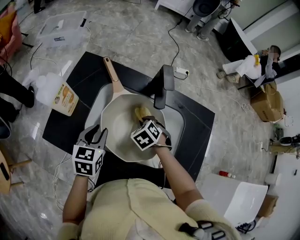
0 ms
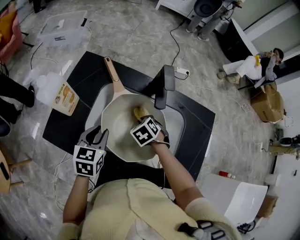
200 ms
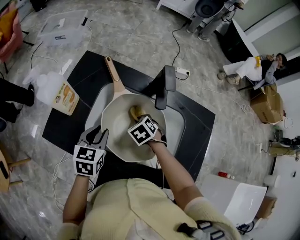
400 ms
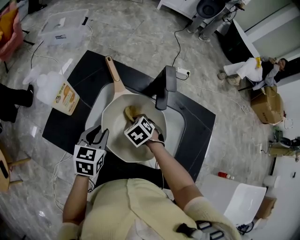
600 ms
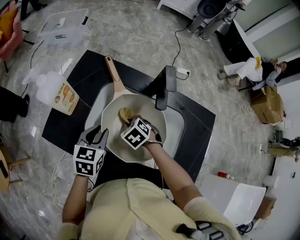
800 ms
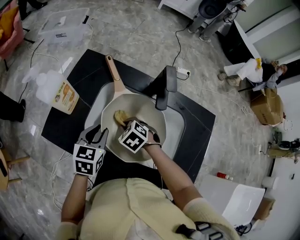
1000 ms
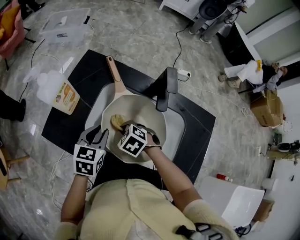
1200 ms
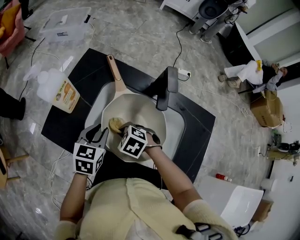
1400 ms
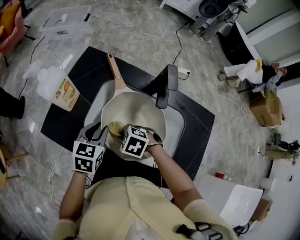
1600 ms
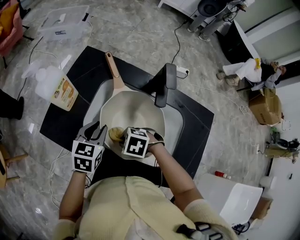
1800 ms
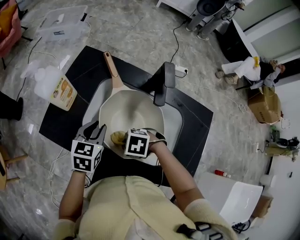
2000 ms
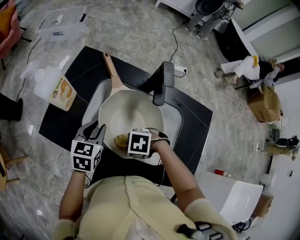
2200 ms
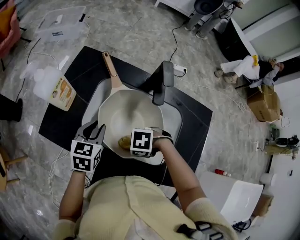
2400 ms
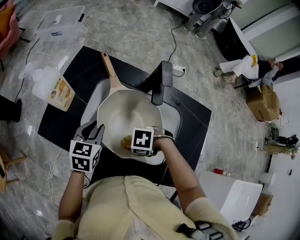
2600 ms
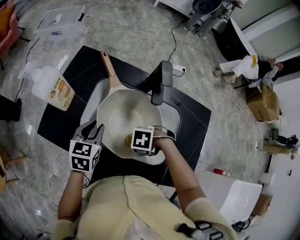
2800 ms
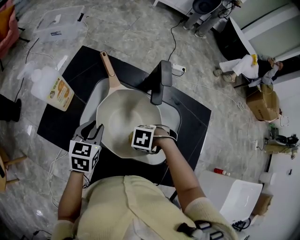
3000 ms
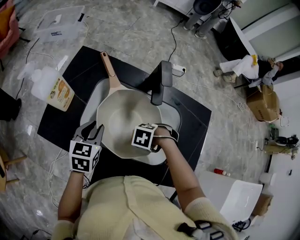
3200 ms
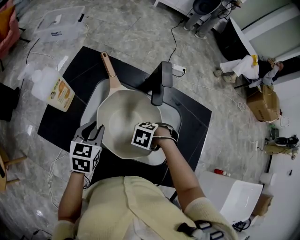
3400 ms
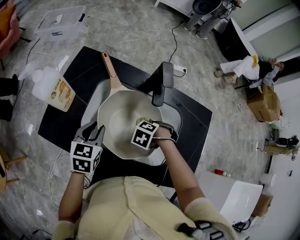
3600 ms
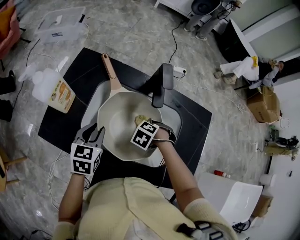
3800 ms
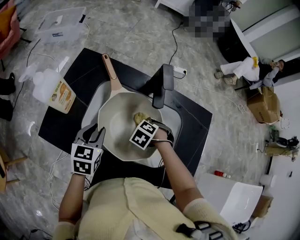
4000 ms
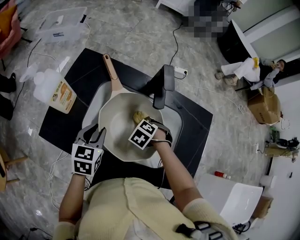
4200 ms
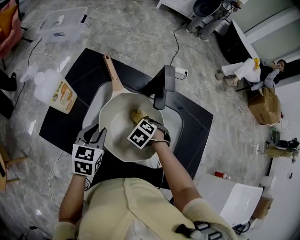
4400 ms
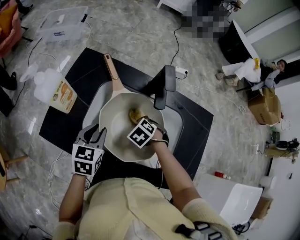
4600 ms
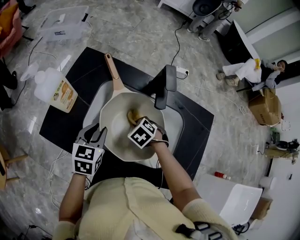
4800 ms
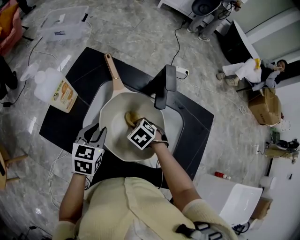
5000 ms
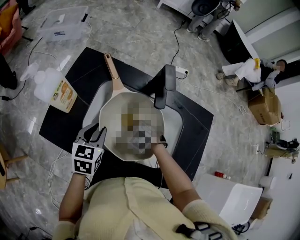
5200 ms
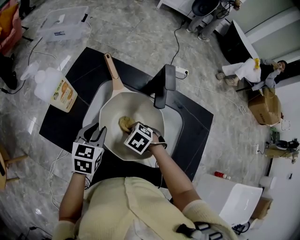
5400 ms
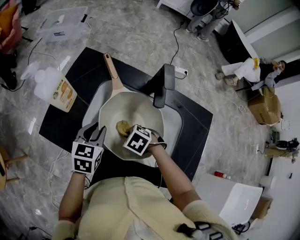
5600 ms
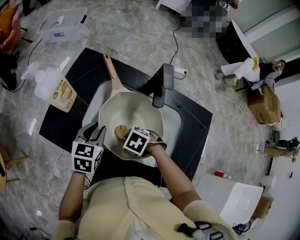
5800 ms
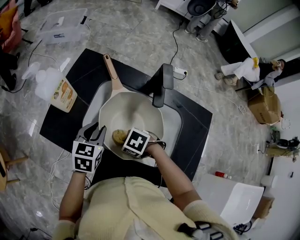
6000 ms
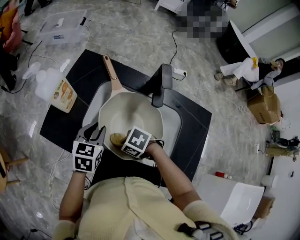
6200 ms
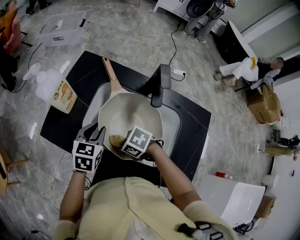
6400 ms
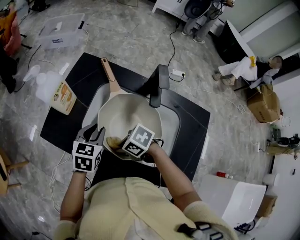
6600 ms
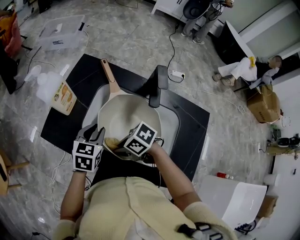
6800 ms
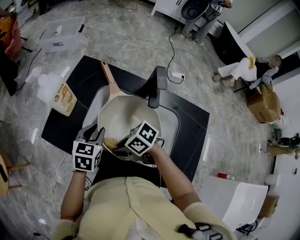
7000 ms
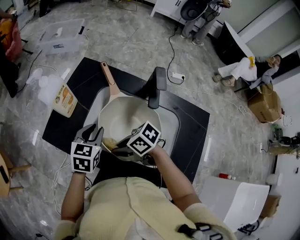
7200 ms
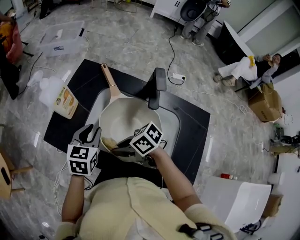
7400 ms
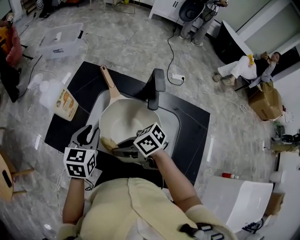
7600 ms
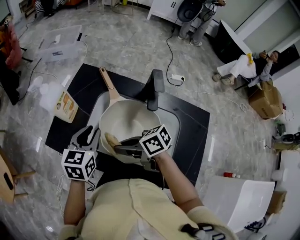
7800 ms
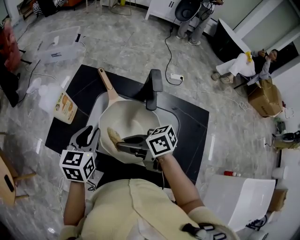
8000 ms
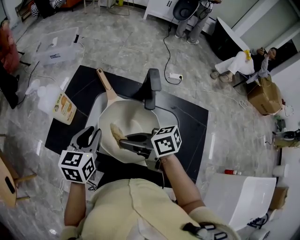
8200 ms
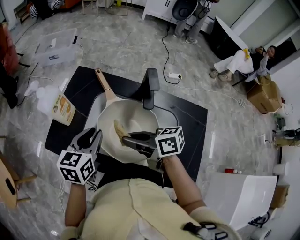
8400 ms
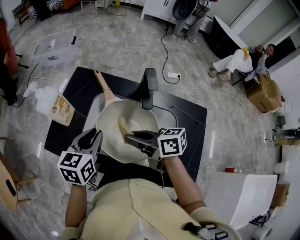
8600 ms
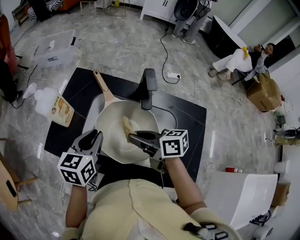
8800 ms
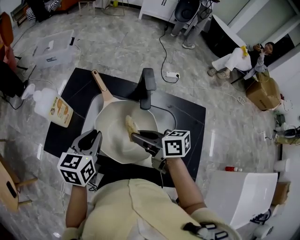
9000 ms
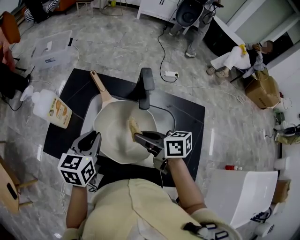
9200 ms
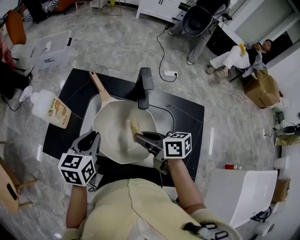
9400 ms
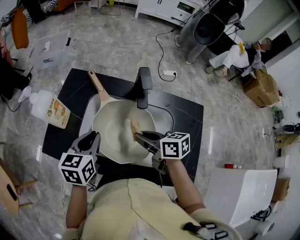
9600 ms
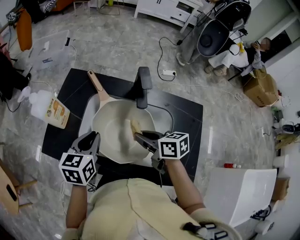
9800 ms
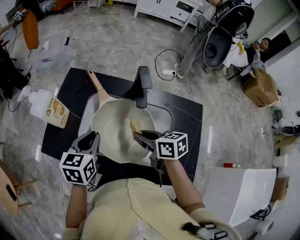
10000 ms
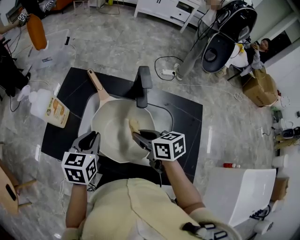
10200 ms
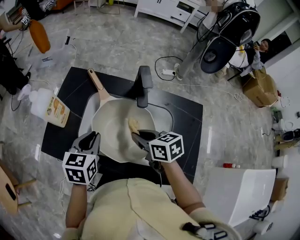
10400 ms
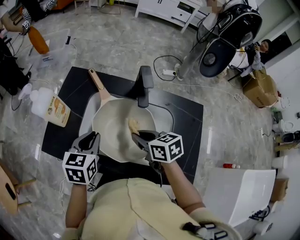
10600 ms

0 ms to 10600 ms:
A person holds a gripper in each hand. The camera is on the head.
0 ms to 1600 ms: The right gripper shifts by about 15 cm, and rotates approximately 40 degrees.
1600 ms to 3000 ms: The right gripper changes place by roughly 15 cm, and changes its angle by some 30 degrees.
3000 ms to 4600 ms: The right gripper shifts by roughly 10 cm, and rotates some 40 degrees.
4600 ms to 6000 ms: The right gripper moves about 15 cm, and rotates approximately 30 degrees.
6000 ms to 7600 ms: The left gripper travels upward by about 5 cm; the right gripper travels upward by roughly 10 cm, and tilts its fingers approximately 40 degrees upward.
7600 ms to 9000 ms: The right gripper travels to the right and upward by about 15 cm, and turns by some 40 degrees, while the left gripper shifts by some 5 cm.
9000 ms to 10600 ms: The right gripper turns by roughly 20 degrees.

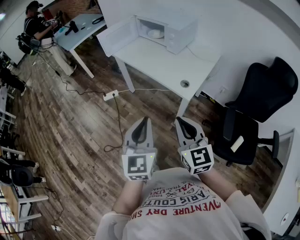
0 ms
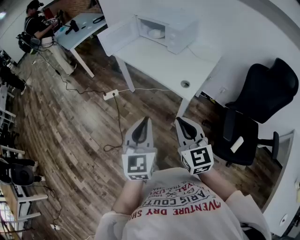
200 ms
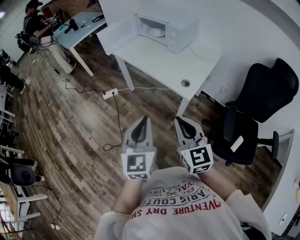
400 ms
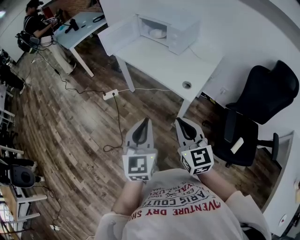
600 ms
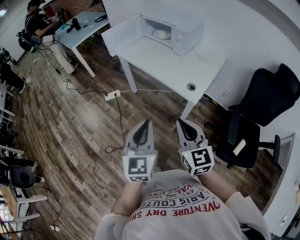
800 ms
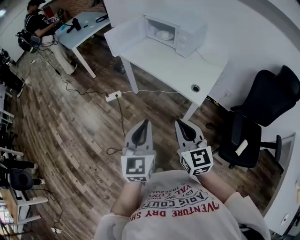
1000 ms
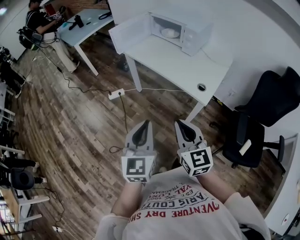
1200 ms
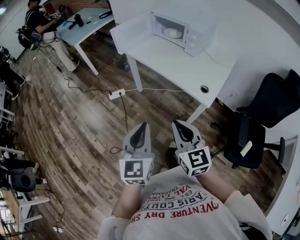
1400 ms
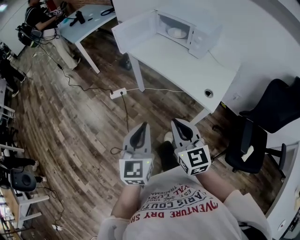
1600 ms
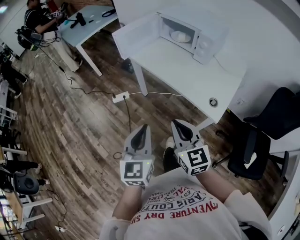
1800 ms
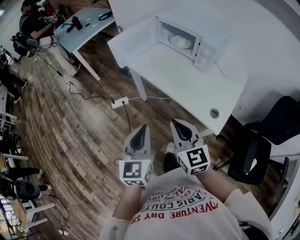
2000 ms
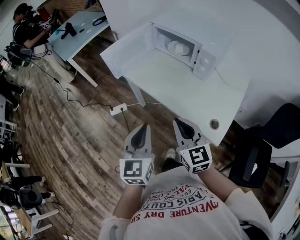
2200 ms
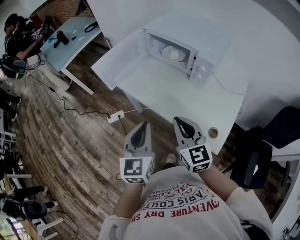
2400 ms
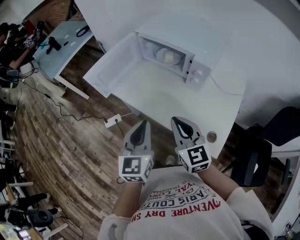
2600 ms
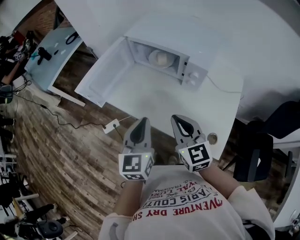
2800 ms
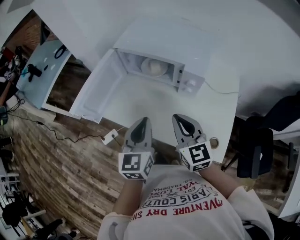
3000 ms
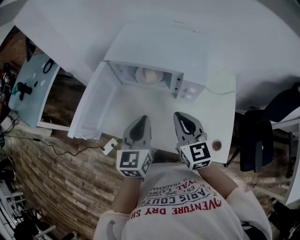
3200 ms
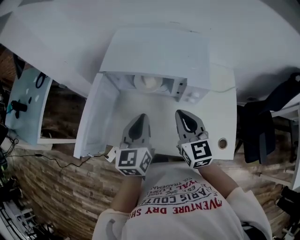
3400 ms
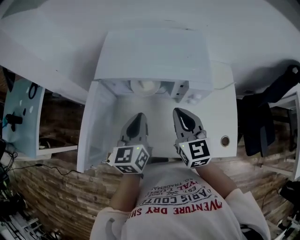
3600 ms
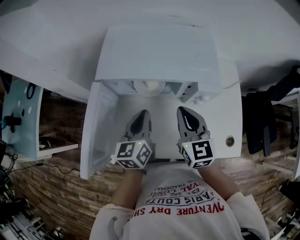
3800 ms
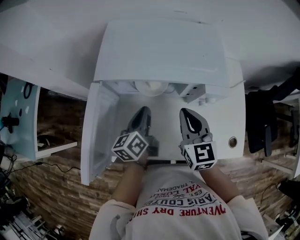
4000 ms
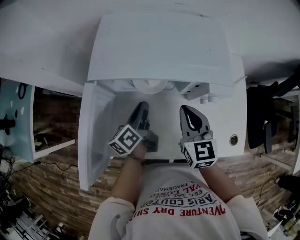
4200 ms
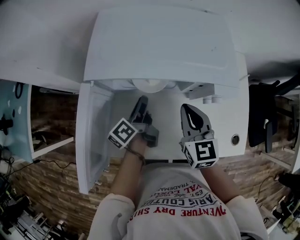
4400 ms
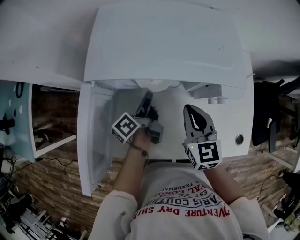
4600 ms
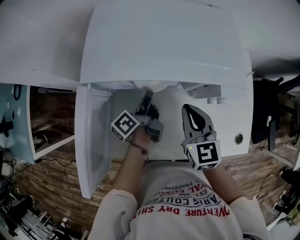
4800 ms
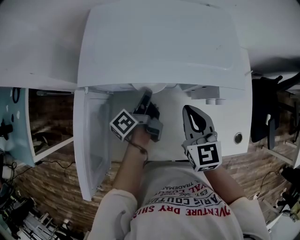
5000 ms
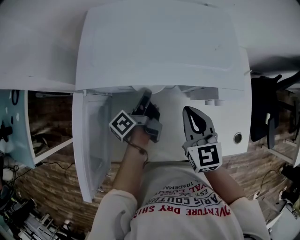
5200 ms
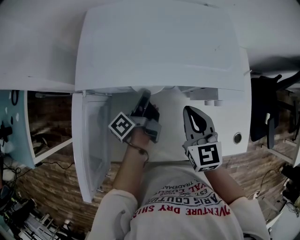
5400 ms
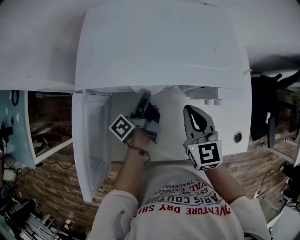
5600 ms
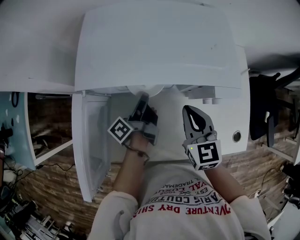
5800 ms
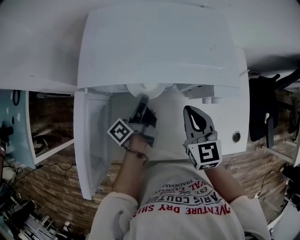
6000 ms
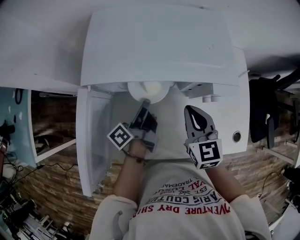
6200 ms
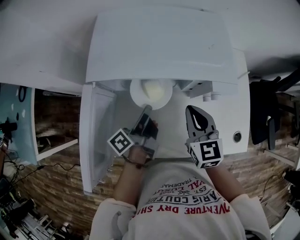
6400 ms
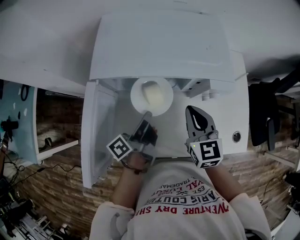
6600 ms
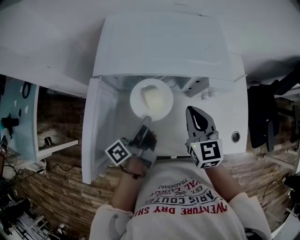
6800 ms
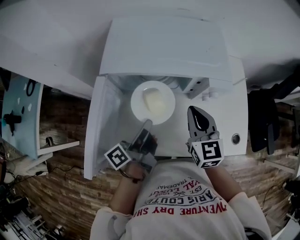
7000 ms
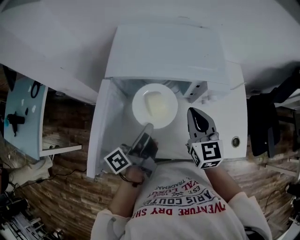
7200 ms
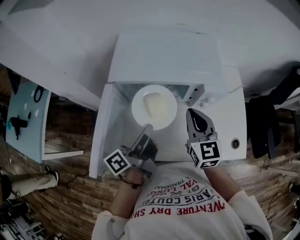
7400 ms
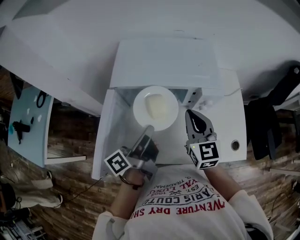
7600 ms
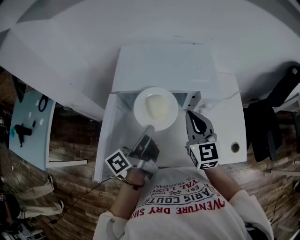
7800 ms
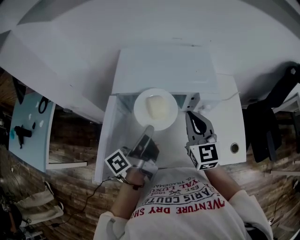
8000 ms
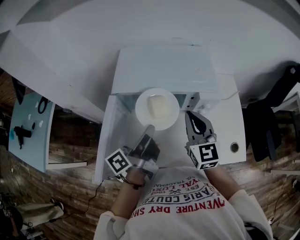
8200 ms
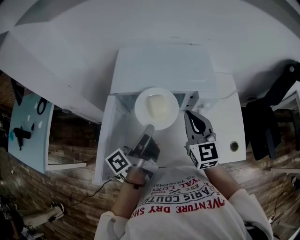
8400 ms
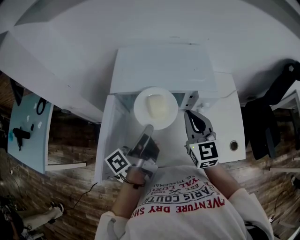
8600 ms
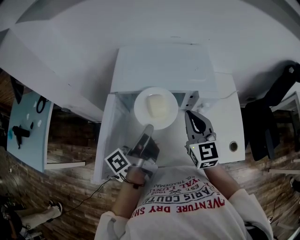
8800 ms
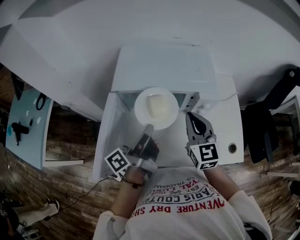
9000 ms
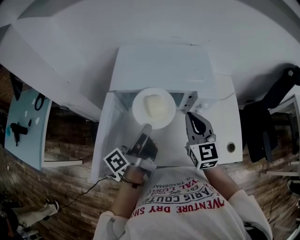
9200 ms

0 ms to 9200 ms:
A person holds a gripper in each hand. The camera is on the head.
0 ms to 1600 ms: Both grippers move to the left and forward, roughly 15 cm.
1600 ms to 3000 ms: The two grippers travel together, forward, some 50 cm. The left gripper turns by roughly 20 degrees.
3000 ms to 4600 ms: The left gripper changes place by some 35 cm, rolls counterclockwise, seen from behind, by some 70 degrees, and opens up; the right gripper changes place by some 20 cm, and swivels about 30 degrees.
4600 ms to 6200 ms: The grippers stay close to where they were, moving slightly.
6200 ms to 7600 ms: The left gripper shifts some 20 cm upward and backward. The right gripper shifts roughly 10 cm upward.
7600 ms to 9200 ms: There are only small adjustments of the grippers.

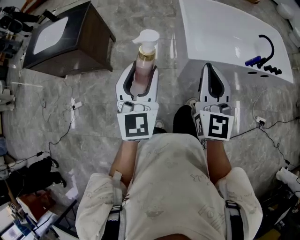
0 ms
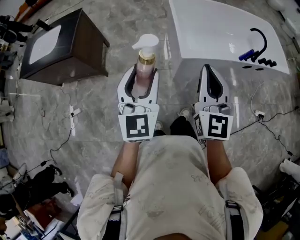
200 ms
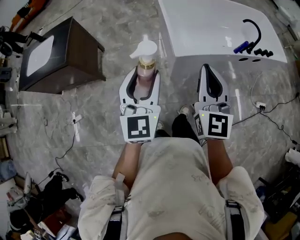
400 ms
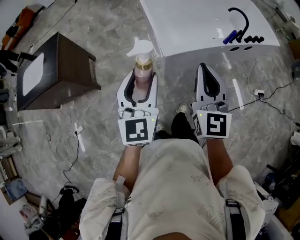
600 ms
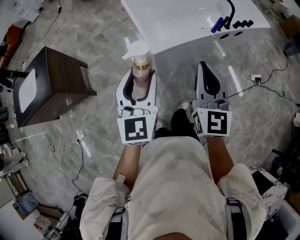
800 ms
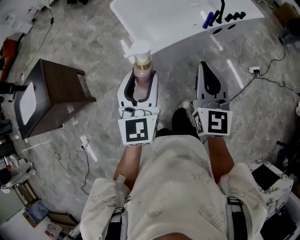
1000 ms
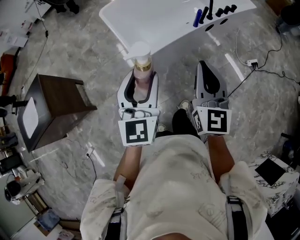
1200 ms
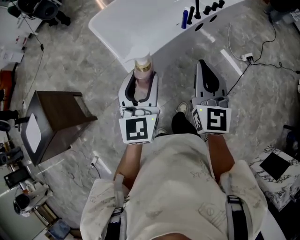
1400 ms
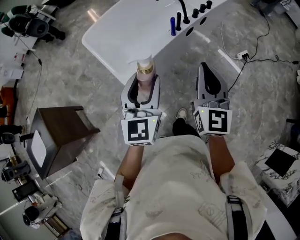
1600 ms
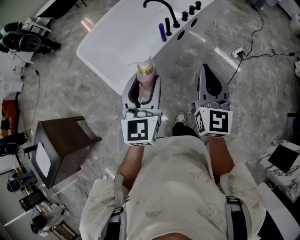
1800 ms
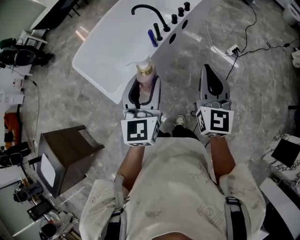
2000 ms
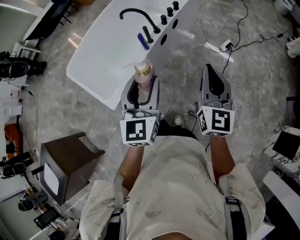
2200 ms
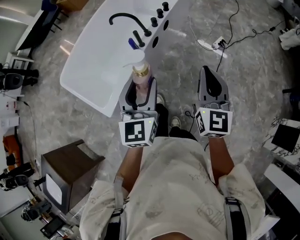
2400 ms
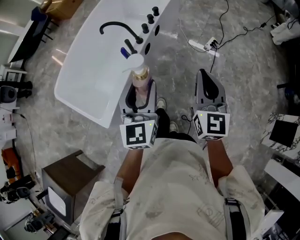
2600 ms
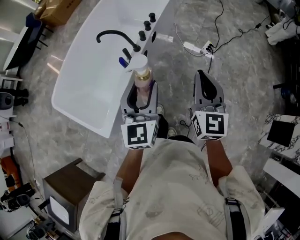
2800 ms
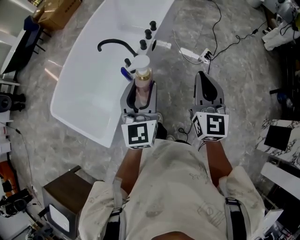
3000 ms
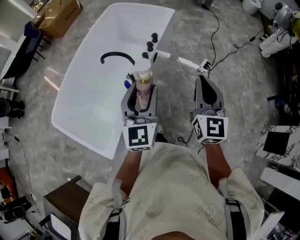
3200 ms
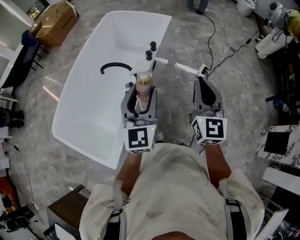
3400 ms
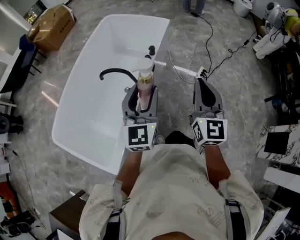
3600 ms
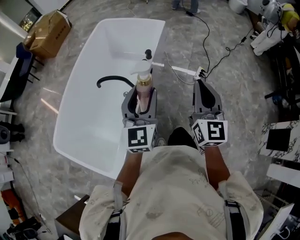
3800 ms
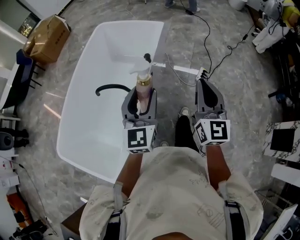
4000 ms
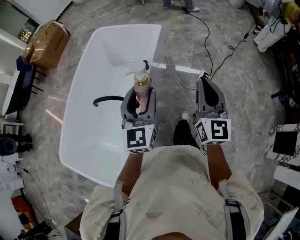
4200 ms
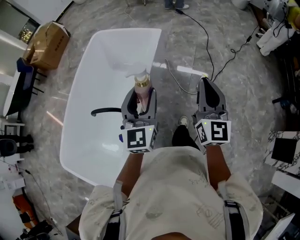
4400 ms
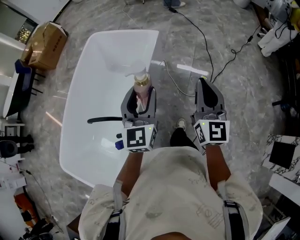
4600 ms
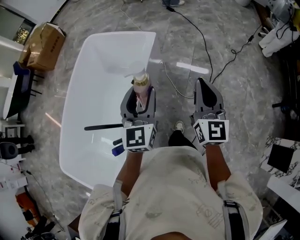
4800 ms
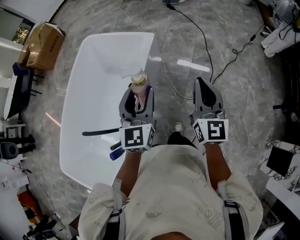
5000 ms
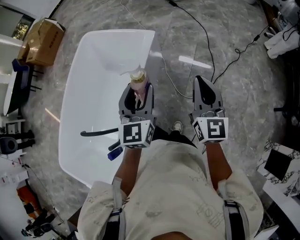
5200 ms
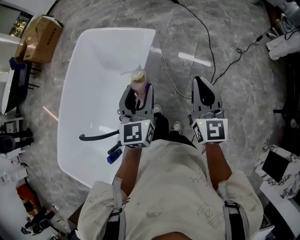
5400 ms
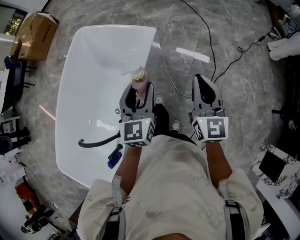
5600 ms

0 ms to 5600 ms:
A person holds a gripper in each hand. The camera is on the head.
0 ms to 1400 ms: The left gripper ends up approximately 35 cm from where it was, and changes its angle by roughly 40 degrees. The right gripper moves about 35 cm, and rotates approximately 30 degrees.
1400 ms to 2800 ms: The right gripper shifts by about 30 cm, and changes its angle by approximately 30 degrees. Meanwhile the left gripper moves approximately 35 cm, and rotates approximately 30 degrees.
2800 ms to 4200 ms: The grippers both shift forward by roughly 25 cm.
4200 ms to 5600 ms: Both grippers travel together forward, roughly 35 cm.
